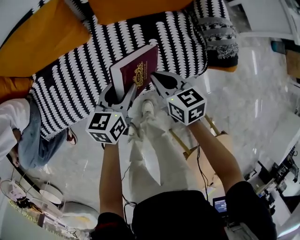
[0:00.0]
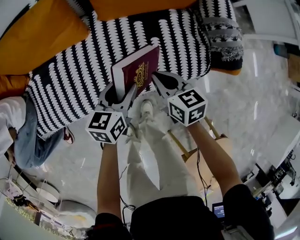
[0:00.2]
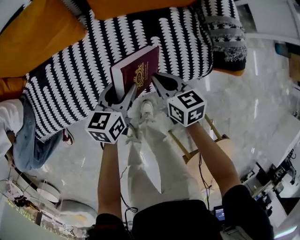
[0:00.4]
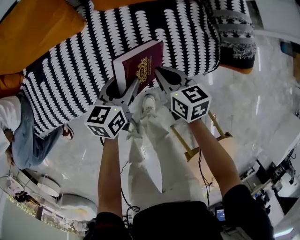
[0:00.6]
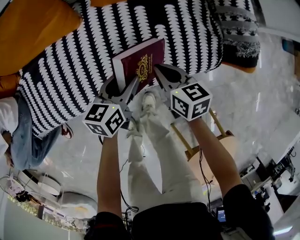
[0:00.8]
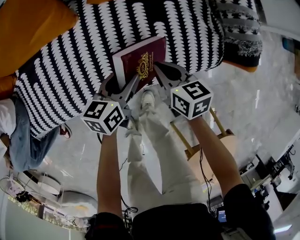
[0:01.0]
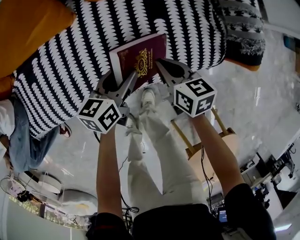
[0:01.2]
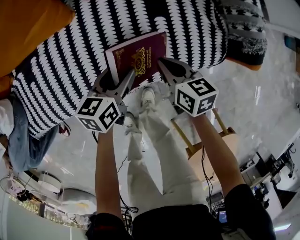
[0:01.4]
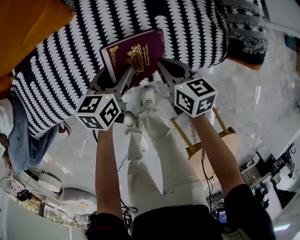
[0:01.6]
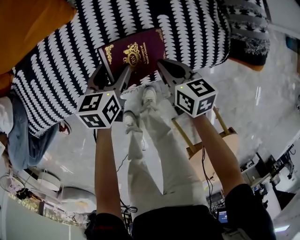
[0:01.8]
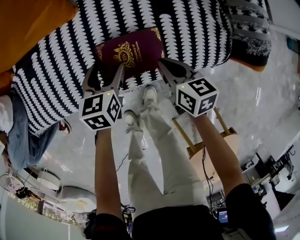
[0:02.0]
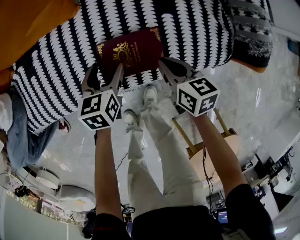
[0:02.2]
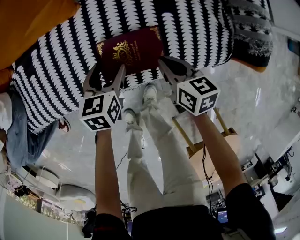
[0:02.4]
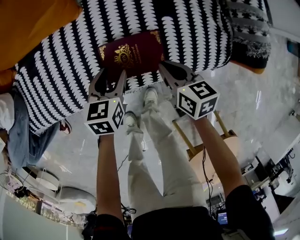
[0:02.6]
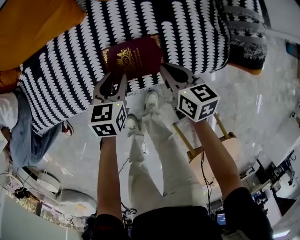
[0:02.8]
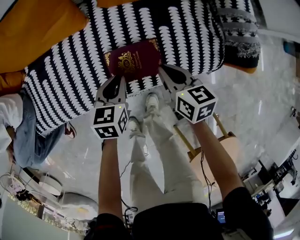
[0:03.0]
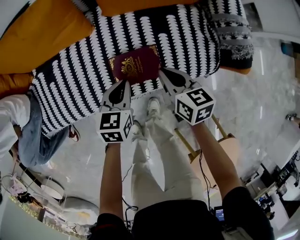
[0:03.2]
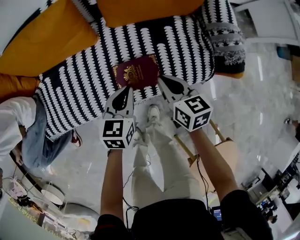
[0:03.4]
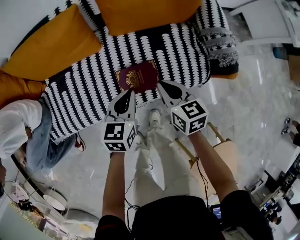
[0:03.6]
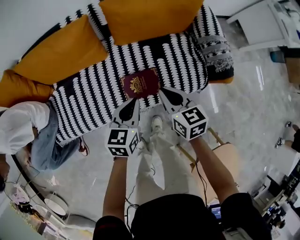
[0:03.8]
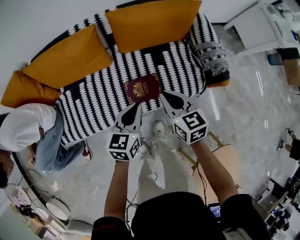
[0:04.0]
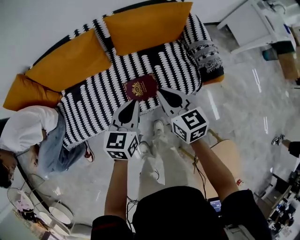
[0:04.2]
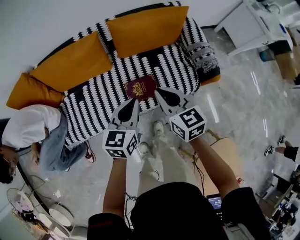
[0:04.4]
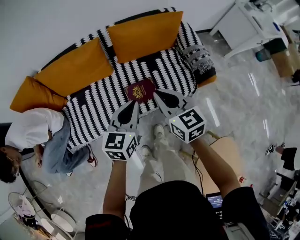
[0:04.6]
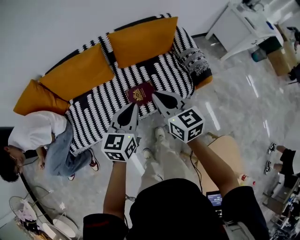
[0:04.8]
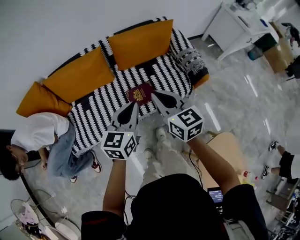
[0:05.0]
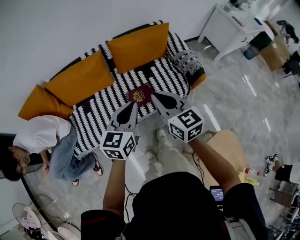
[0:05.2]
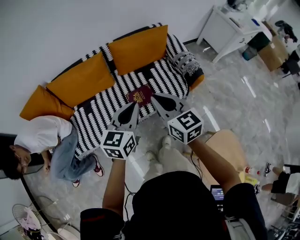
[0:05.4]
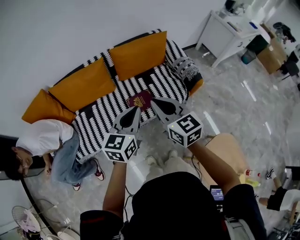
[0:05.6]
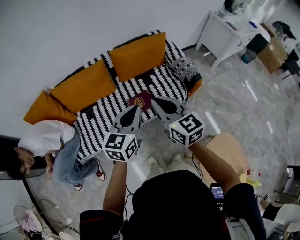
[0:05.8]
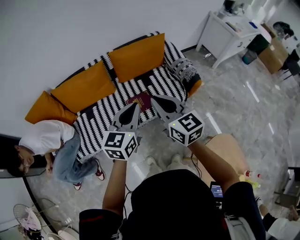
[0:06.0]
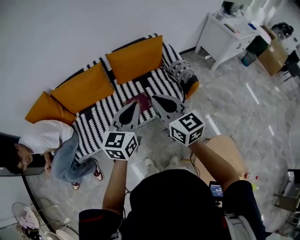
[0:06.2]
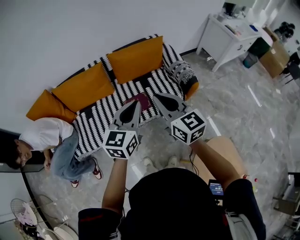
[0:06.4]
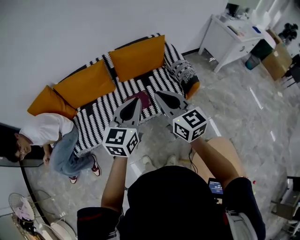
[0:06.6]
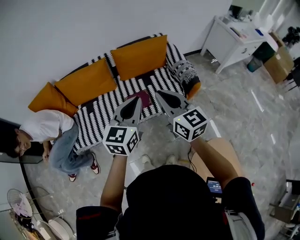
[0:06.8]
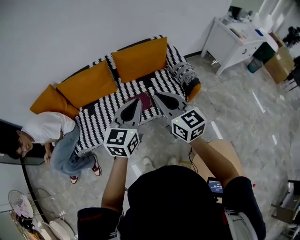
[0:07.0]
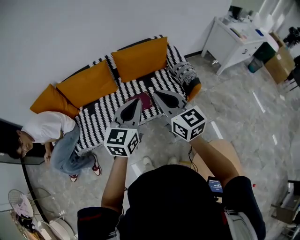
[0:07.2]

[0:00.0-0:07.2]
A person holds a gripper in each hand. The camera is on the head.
0:00.0 to 0:01.4: The two grippers go about 10 cm downward.
0:01.4 to 0:02.8: The left gripper shifts by about 5 cm, and swivels roughly 20 degrees.
0:02.8 to 0:04.4: Both grippers travel together upward, some 40 cm. The right gripper rotates about 30 degrees; the left gripper swivels some 30 degrees, and closes its fingers.
0:04.4 to 0:05.8: The two grippers go some 25 cm upward and backward.
0:05.8 to 0:07.2: The right gripper travels to the right by about 10 cm. Meanwhile the left gripper shifts some 10 cm to the right and upward.

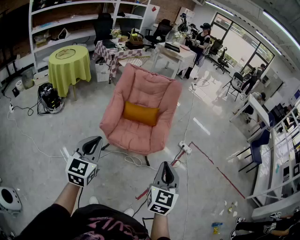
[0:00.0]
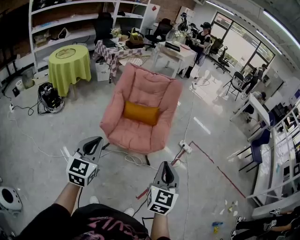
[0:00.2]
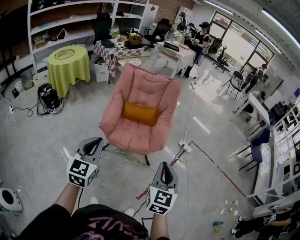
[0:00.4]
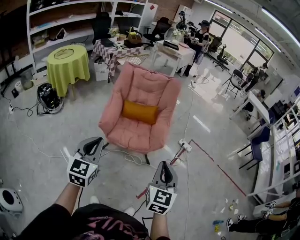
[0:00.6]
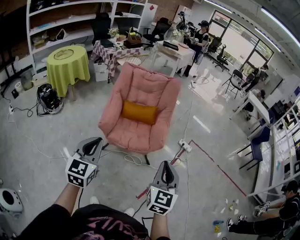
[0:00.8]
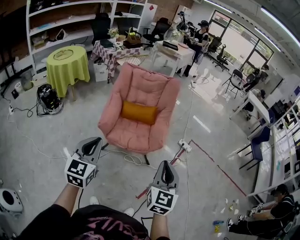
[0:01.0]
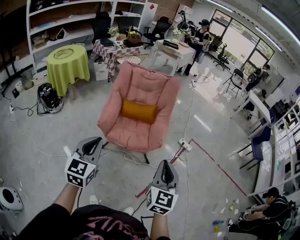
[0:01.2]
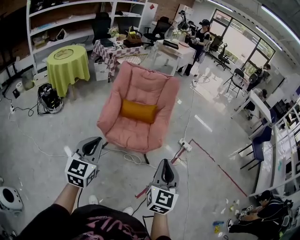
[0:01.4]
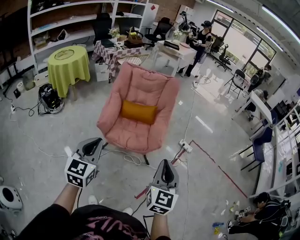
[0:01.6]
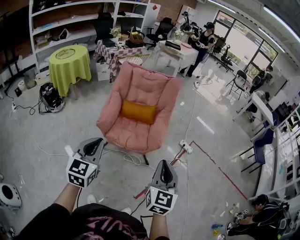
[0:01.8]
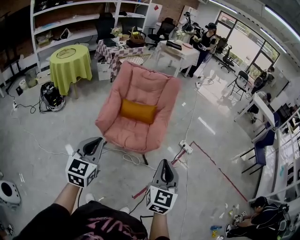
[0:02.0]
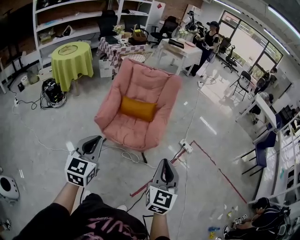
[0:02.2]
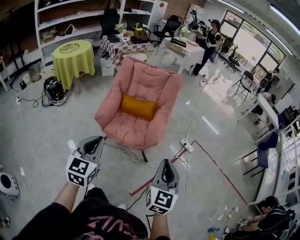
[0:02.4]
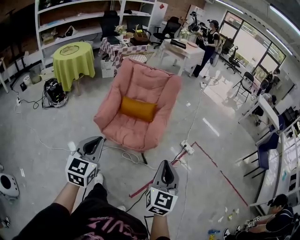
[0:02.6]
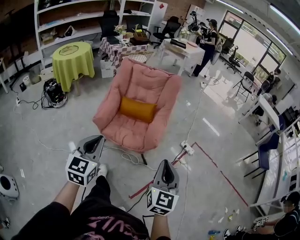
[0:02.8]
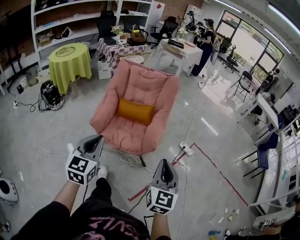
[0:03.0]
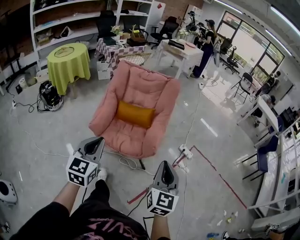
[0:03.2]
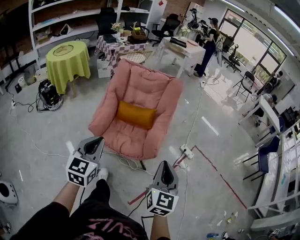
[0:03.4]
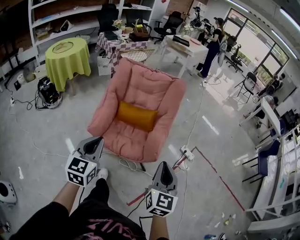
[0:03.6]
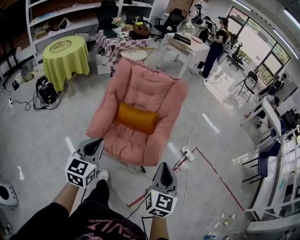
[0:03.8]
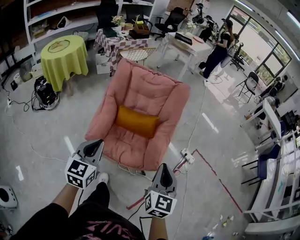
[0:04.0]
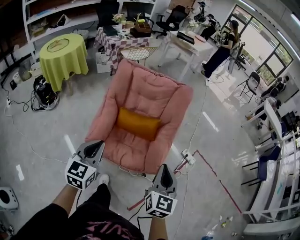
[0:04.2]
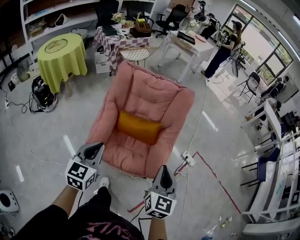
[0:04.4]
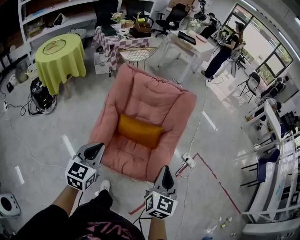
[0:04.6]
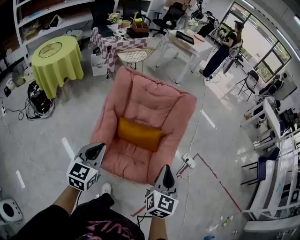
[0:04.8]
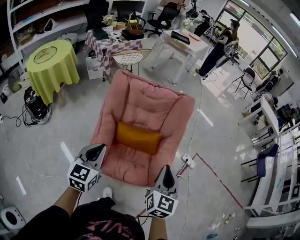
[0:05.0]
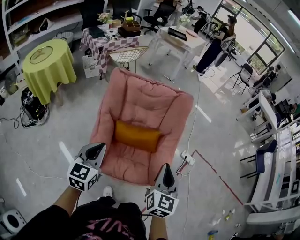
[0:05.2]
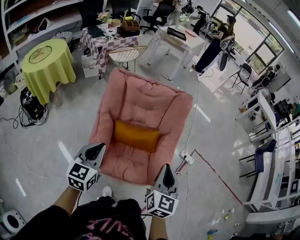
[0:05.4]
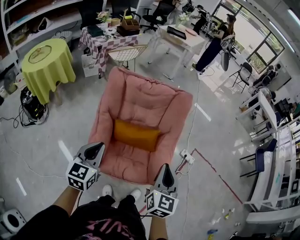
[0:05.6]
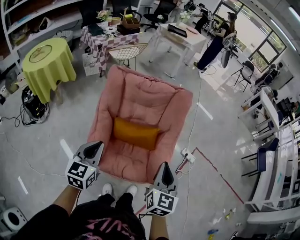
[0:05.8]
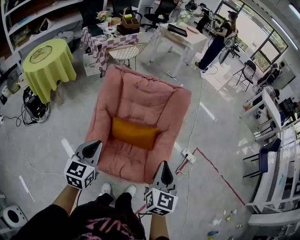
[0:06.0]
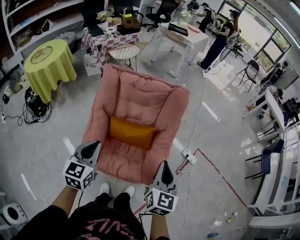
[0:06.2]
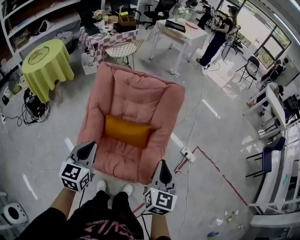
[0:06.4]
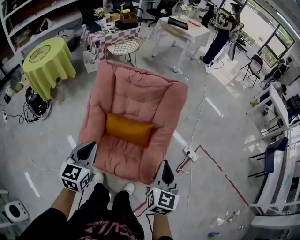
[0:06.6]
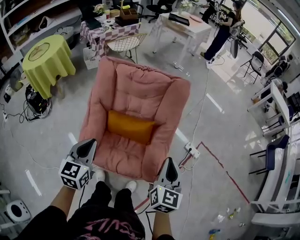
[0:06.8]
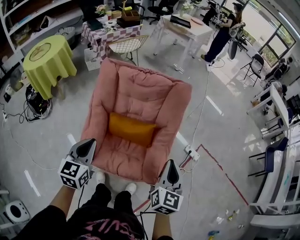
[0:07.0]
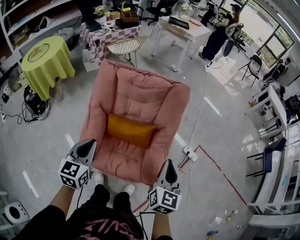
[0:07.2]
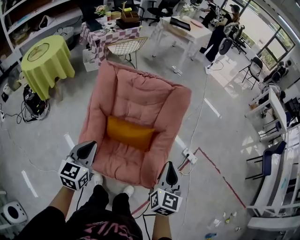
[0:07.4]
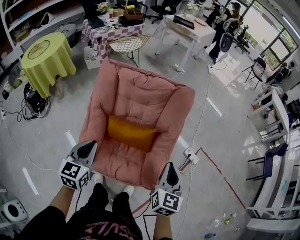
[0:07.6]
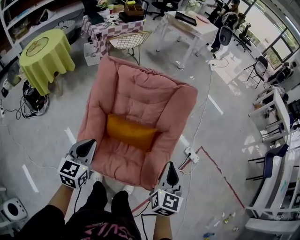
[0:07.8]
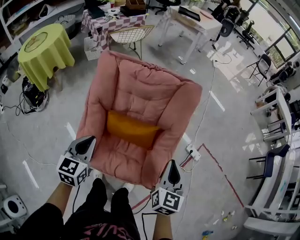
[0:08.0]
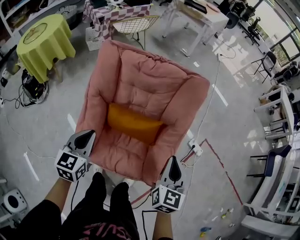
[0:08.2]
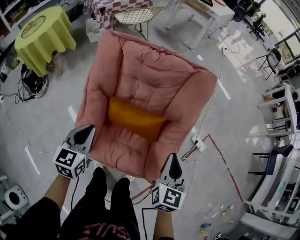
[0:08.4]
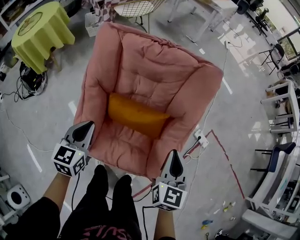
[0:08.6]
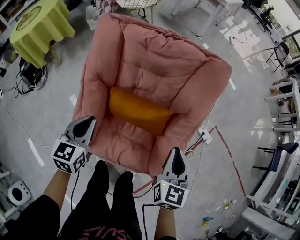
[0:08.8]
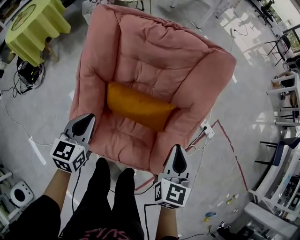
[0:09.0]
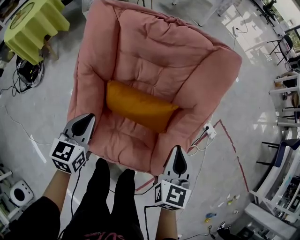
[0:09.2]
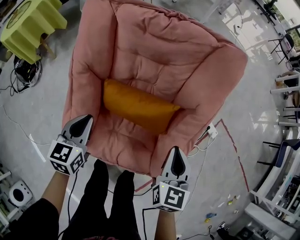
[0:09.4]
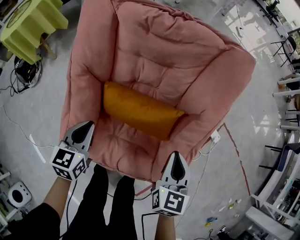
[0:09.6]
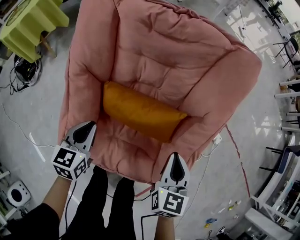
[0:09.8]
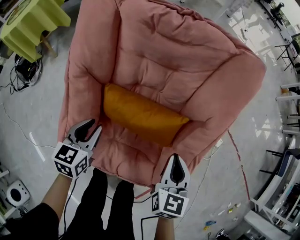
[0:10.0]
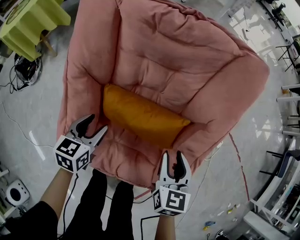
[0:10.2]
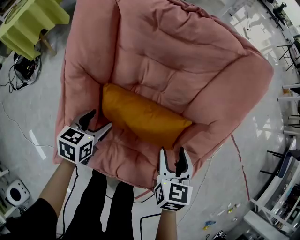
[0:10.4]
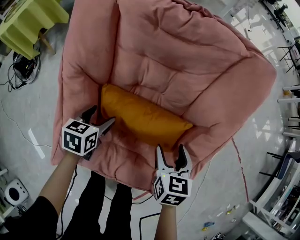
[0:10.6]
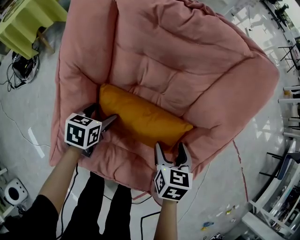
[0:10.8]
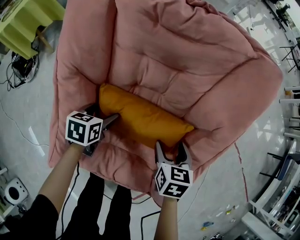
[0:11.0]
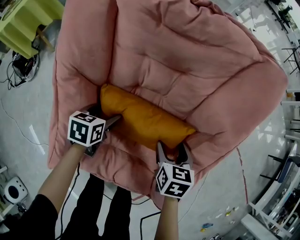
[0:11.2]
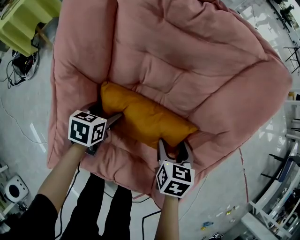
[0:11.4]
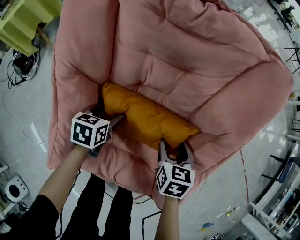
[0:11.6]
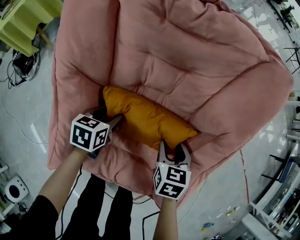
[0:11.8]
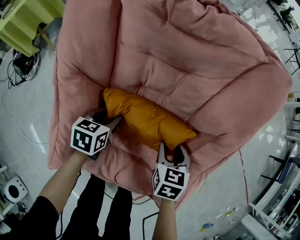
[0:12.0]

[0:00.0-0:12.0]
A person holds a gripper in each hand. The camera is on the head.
0:00.0 to 0:01.6: There are only small adjustments of the grippers.
0:01.6 to 0:03.0: Both grippers travel together to the right and forward, about 10 cm.
0:03.0 to 0:04.4: The grippers both shift forward and to the left by about 30 cm.
0:04.4 to 0:06.0: The grippers both shift forward by roughly 10 cm.
0:06.0 to 0:07.6: The right gripper moves forward, to the right and downward, approximately 10 cm, while the left gripper is displaced forward by roughly 5 cm.
0:07.6 to 0:09.0: Both grippers travel together downward and forward, about 20 cm.
0:09.0 to 0:10.4: The two grippers go some 20 cm downward. The right gripper opens up, while the left gripper opens its fingers.
0:10.4 to 0:12.0: Both grippers travel together downward, some 10 cm.

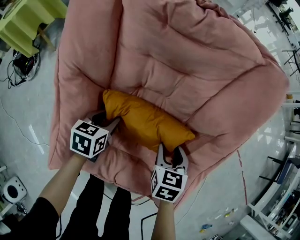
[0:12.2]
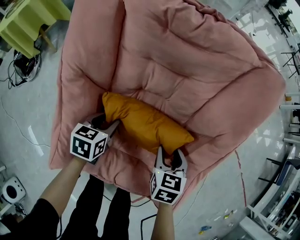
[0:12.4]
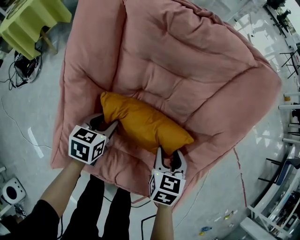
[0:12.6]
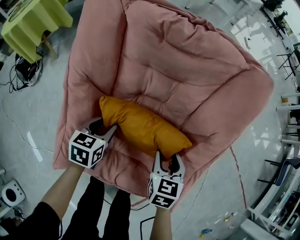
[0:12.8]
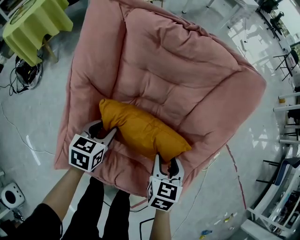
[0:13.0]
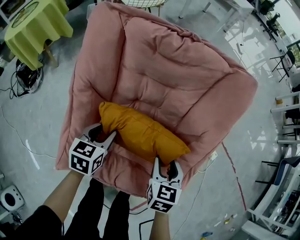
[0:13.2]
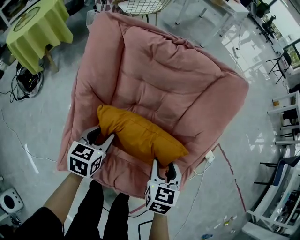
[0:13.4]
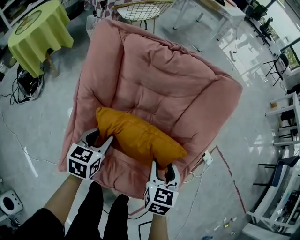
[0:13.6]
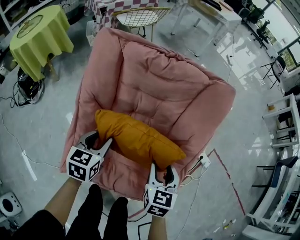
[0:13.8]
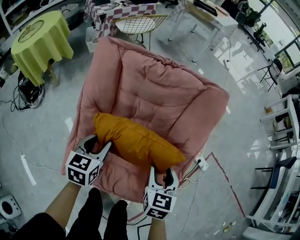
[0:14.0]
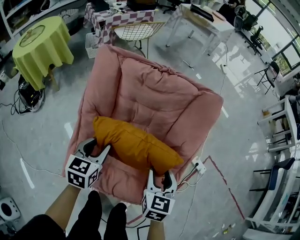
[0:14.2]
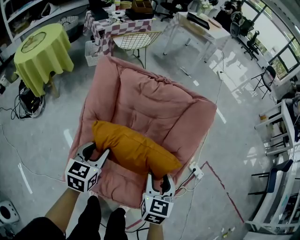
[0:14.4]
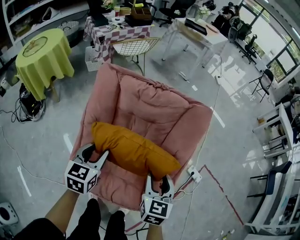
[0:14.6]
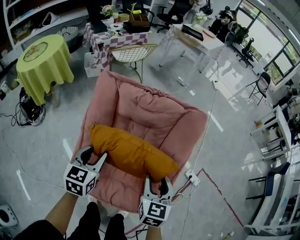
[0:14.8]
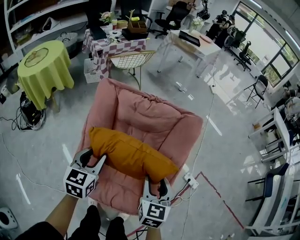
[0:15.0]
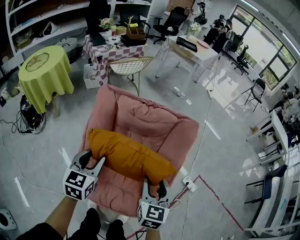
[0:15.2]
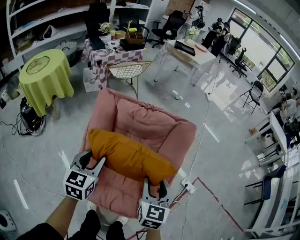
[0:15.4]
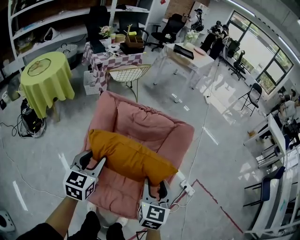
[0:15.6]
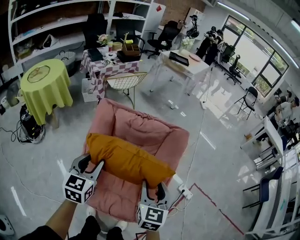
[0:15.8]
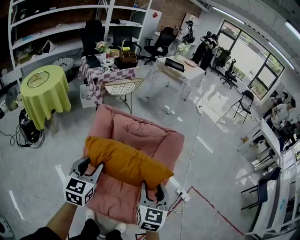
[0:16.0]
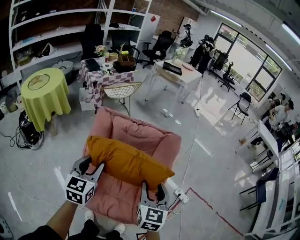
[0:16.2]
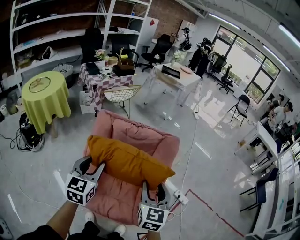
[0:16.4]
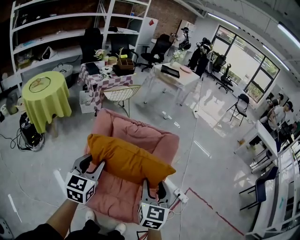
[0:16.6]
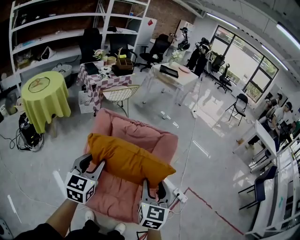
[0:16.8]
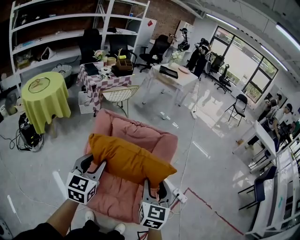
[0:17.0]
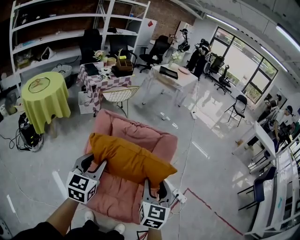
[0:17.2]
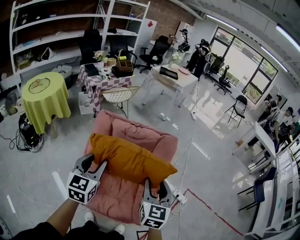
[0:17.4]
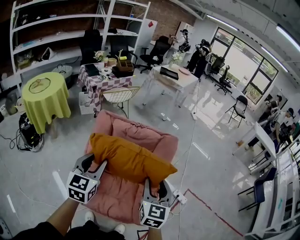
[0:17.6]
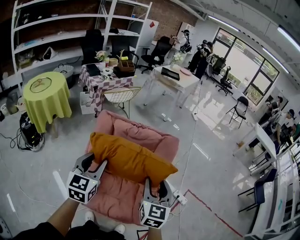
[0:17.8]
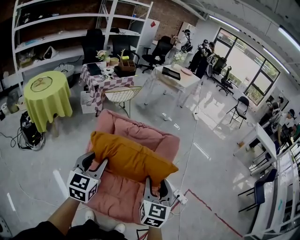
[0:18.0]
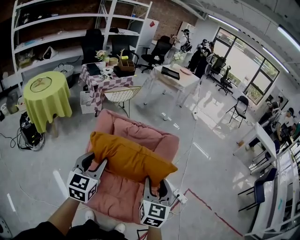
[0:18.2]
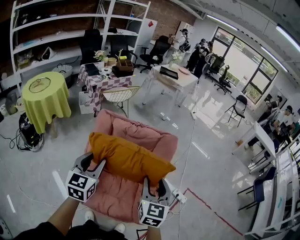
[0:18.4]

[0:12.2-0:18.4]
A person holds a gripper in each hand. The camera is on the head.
0:12.2 to 0:13.8: The grippers both shift upward by some 20 cm.
0:13.8 to 0:15.4: Both grippers move upward, roughly 25 cm.
0:15.4 to 0:16.8: The two grippers go roughly 15 cm upward and backward.
0:16.8 to 0:18.4: Both grippers stay about where they are.
